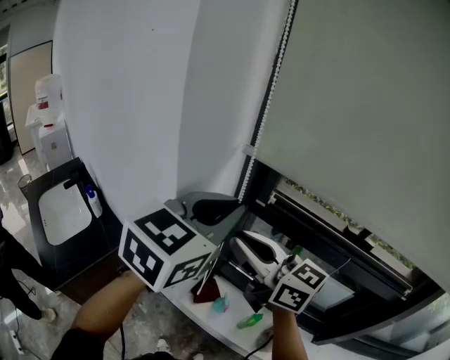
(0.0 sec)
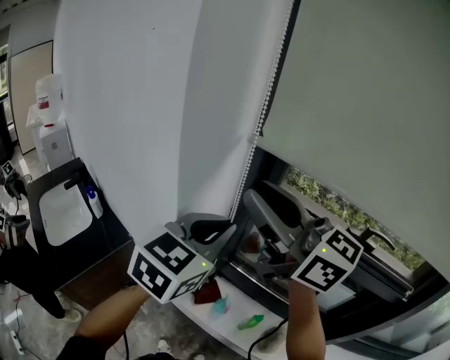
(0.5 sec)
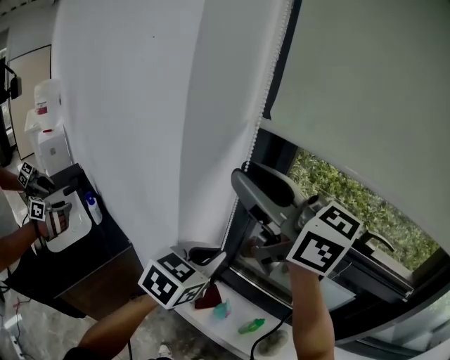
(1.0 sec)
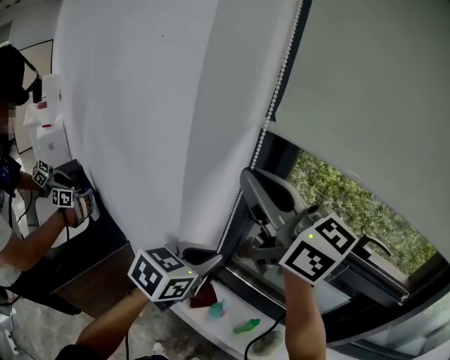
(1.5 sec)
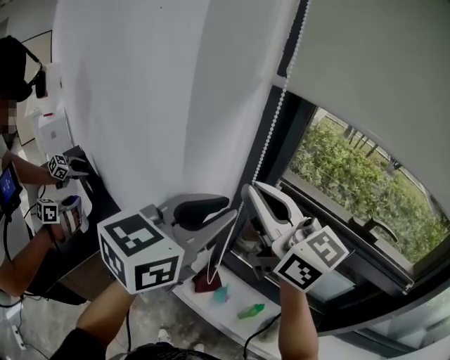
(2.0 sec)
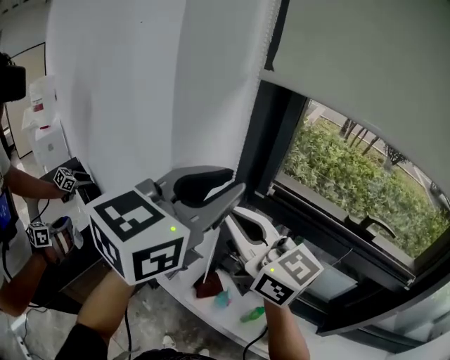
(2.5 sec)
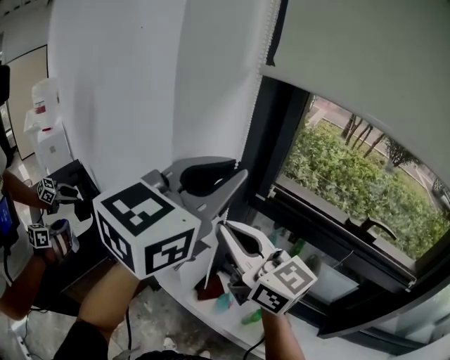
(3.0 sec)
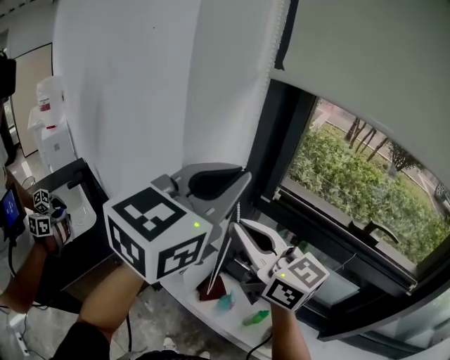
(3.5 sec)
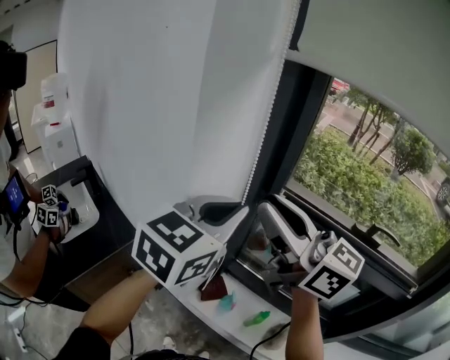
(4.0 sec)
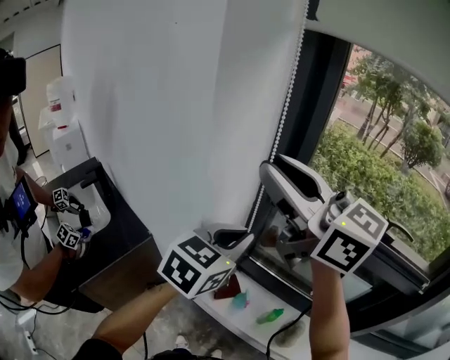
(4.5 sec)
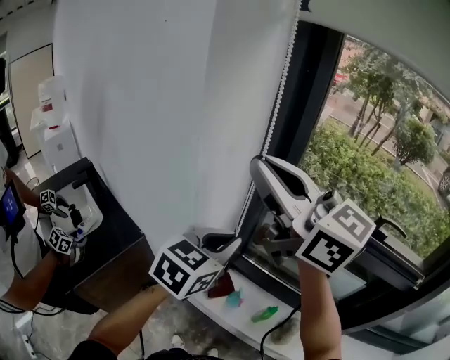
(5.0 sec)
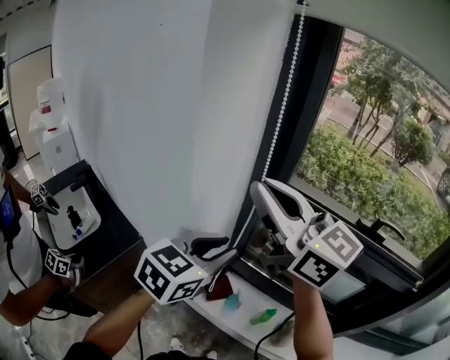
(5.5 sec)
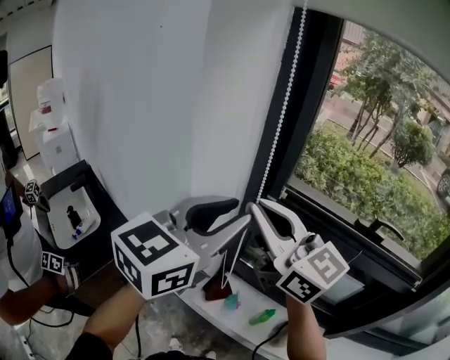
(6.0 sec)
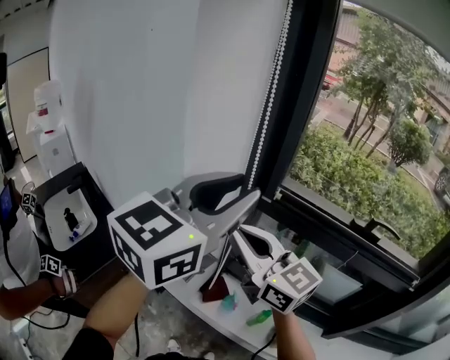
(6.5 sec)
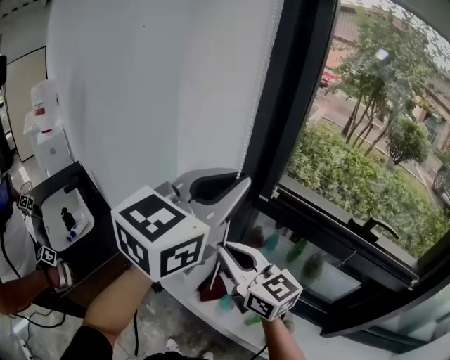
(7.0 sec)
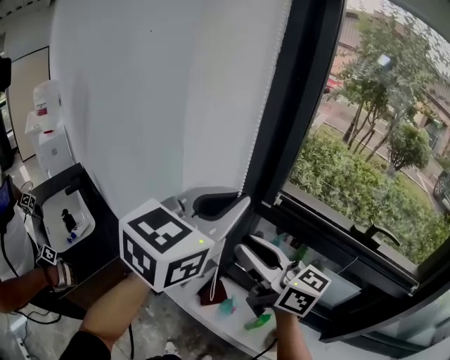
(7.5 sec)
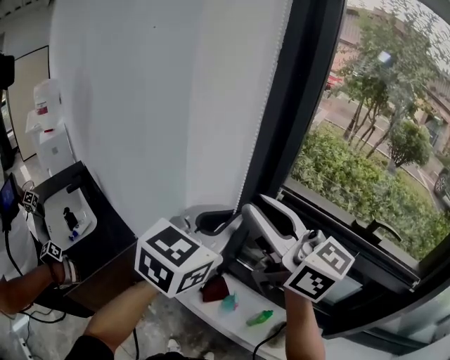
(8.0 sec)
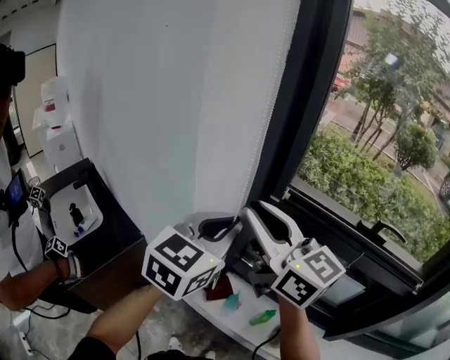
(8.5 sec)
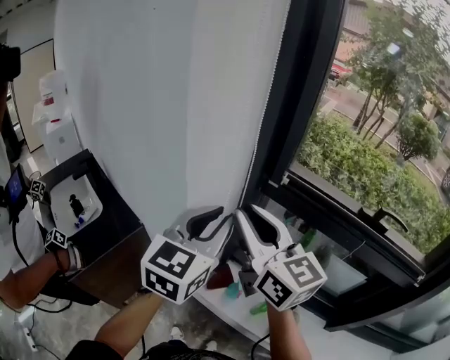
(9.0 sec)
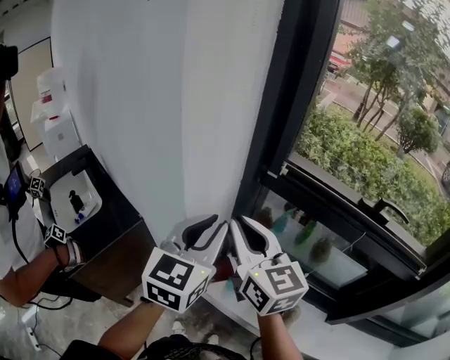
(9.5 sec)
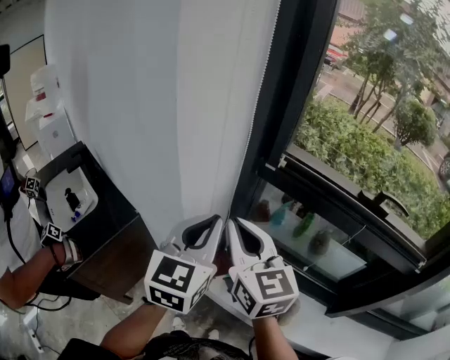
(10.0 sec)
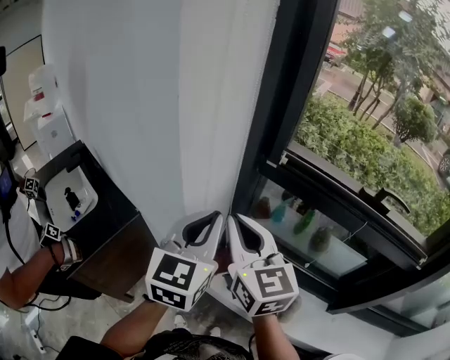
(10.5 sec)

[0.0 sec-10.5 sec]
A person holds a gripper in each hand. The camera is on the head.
0.0 sec to 2.0 sec: The right gripper travels upward by about 10 cm; the left gripper travels downward and back again, some 15 cm each way.
2.0 sec to 4.0 sec: The right gripper goes downward and returns, roughly 5 cm each way. Meanwhile the left gripper goes upward and returns, about 10 cm each way.
4.0 sec to 6.5 sec: The right gripper heads downward, covering some 10 cm. Meanwhile the left gripper shifts about 5 cm upward, and opens.
6.5 sec to 8.5 sec: The right gripper goes roughly 5 cm upward. Meanwhile the left gripper goes approximately 10 cm downward, and closes its fingers.
8.5 sec to 10.5 sec: The left gripper shifts roughly 5 cm downward. Meanwhile the right gripper moves downward, roughly 10 cm, and rotates about 20 degrees.

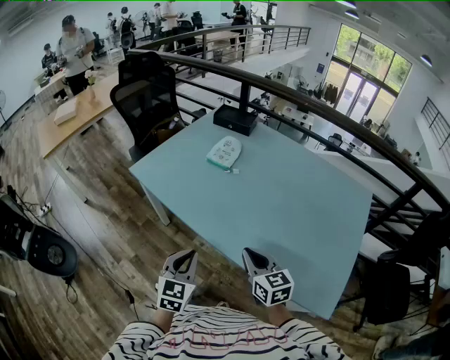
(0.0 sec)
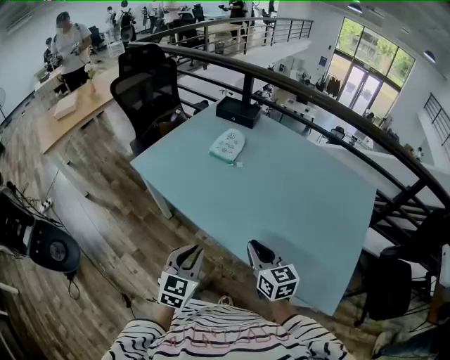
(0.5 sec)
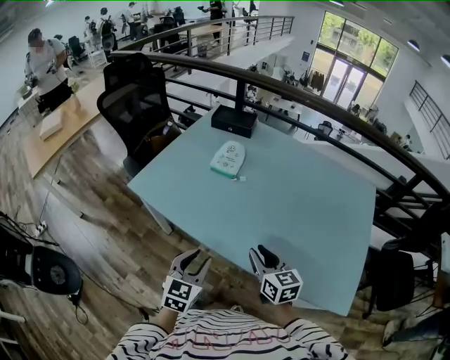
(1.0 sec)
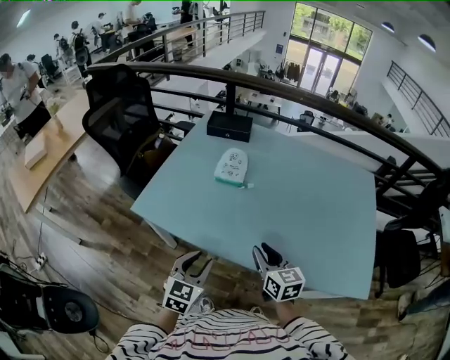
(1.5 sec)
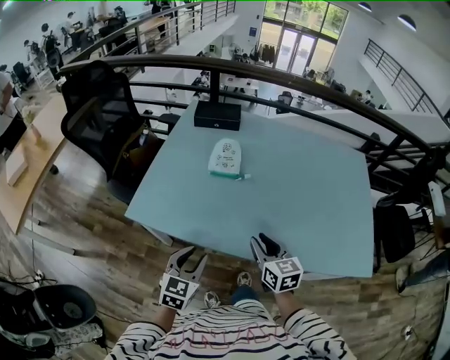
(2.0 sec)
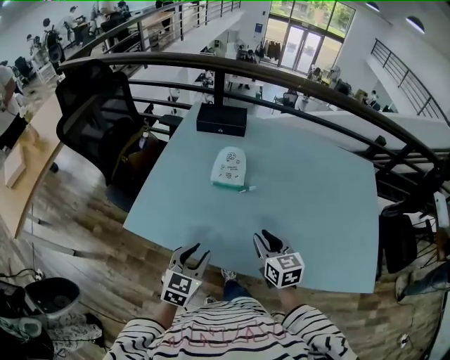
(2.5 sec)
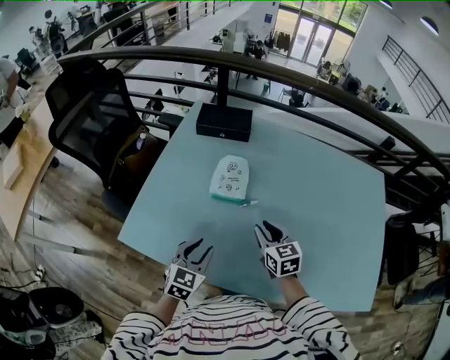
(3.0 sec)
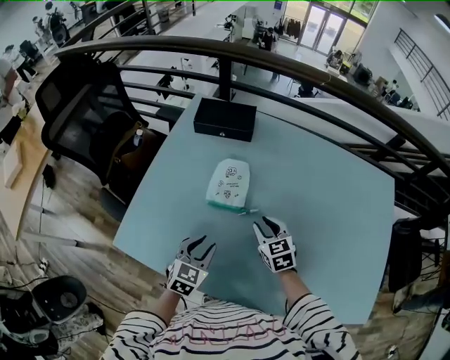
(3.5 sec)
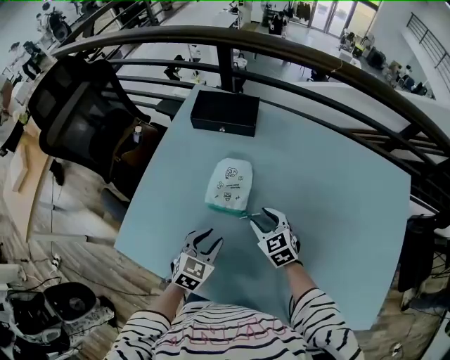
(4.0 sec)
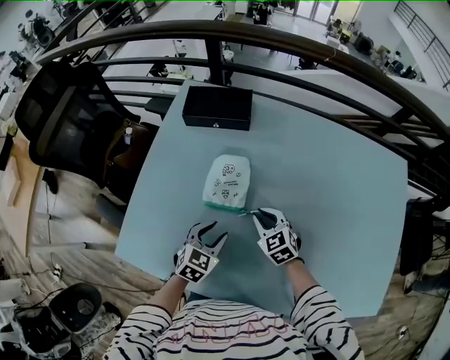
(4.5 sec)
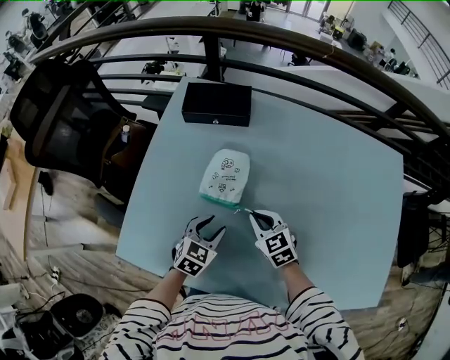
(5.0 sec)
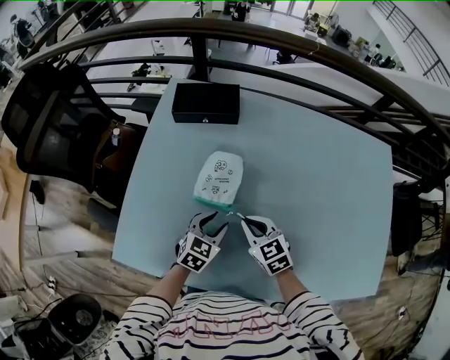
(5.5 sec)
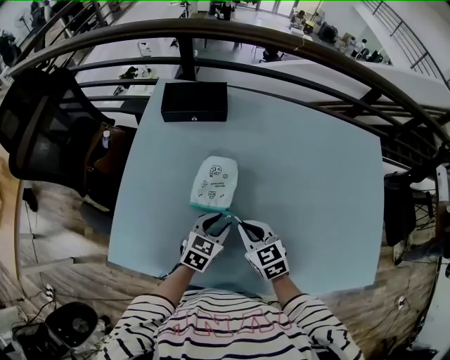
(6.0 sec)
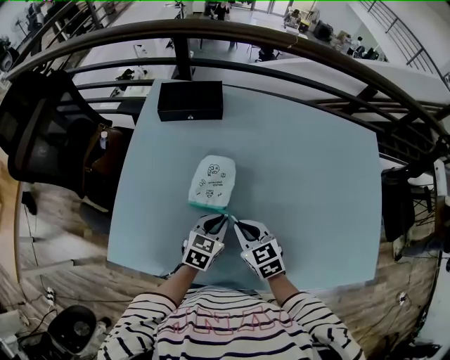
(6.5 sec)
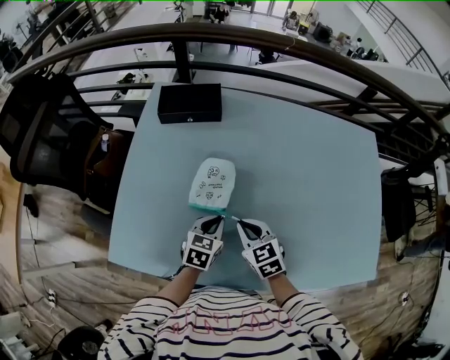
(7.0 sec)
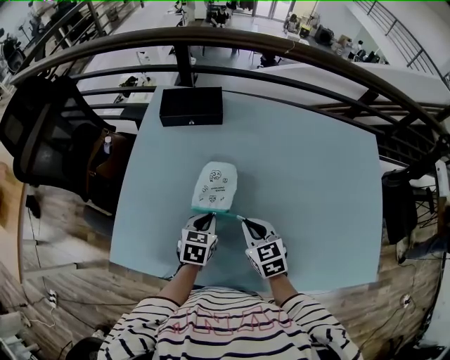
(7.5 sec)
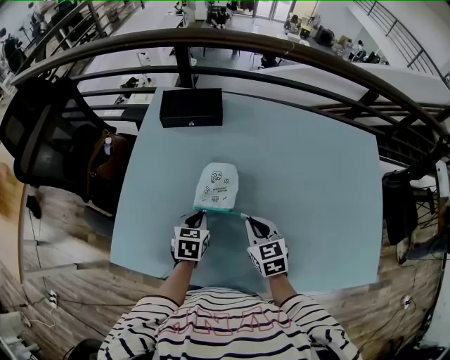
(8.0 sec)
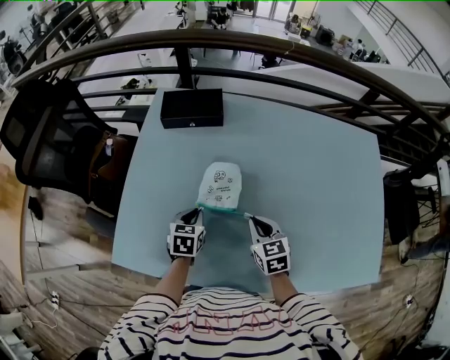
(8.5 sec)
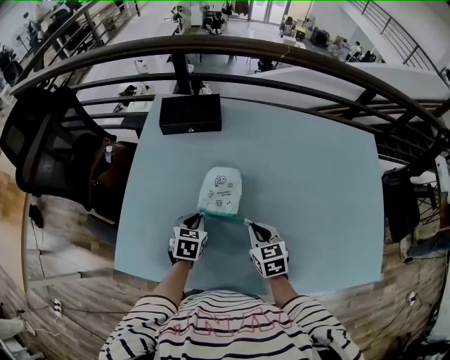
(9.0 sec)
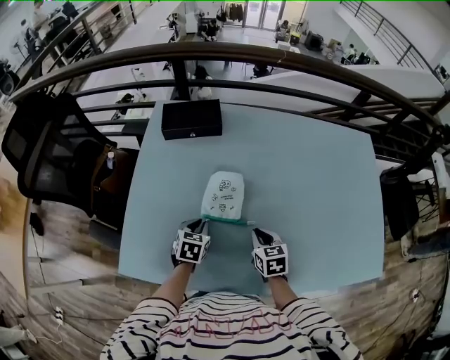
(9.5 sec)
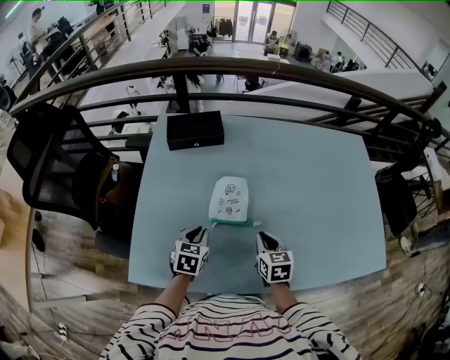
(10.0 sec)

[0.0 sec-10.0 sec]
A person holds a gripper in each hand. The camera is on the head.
0.0 sec to 2.0 sec: The left gripper ends up about 25 cm from where it was, and changes its angle by some 30 degrees. The right gripper ends up roughly 20 cm from where it was, and turns by some 30 degrees.
2.0 sec to 4.0 sec: The left gripper heads forward, covering approximately 30 cm. Meanwhile the right gripper goes about 35 cm forward and downward, and swivels roughly 30 degrees.
4.0 sec to 6.0 sec: The right gripper goes roughly 10 cm backward, and closes its fingers.
6.0 sec to 8.0 sec: The left gripper shifts roughly 10 cm to the left, swivels roughly 20 degrees, and closes up.
8.0 sec to 10.0 sec: The left gripper goes some 5 cm to the left. Meanwhile the right gripper swivels some 20 degrees.

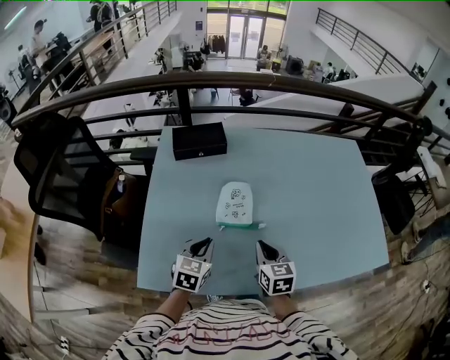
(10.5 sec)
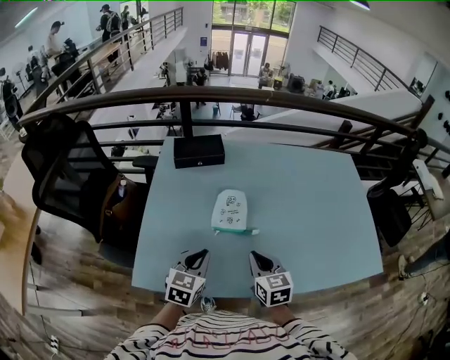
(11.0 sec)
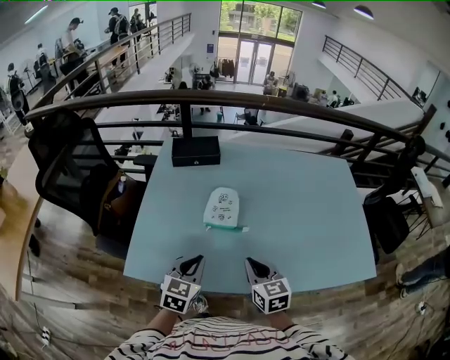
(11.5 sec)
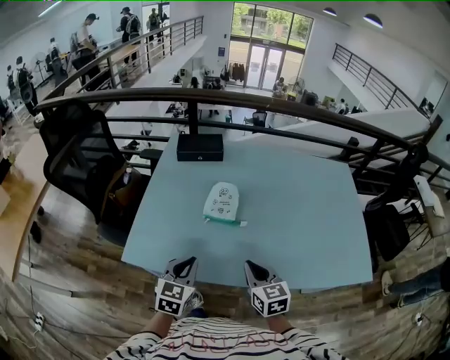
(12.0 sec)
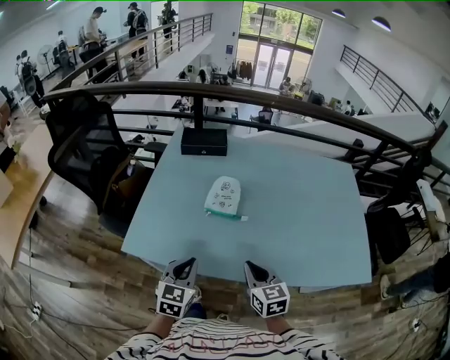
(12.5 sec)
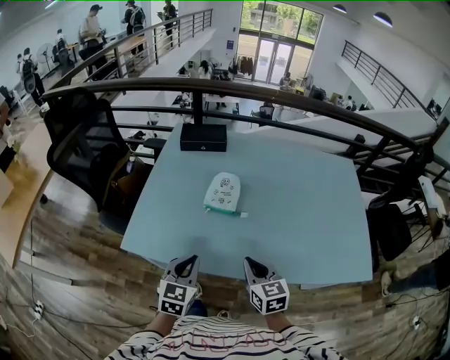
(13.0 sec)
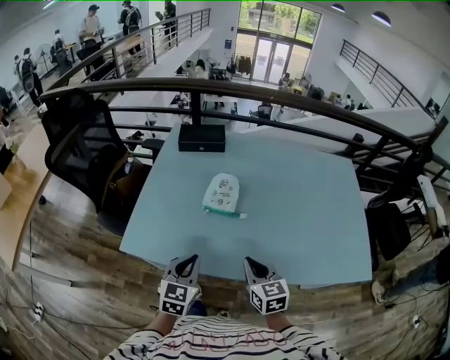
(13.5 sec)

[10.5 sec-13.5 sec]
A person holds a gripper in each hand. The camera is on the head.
10.5 sec to 12.0 sec: The two grippers go roughly 15 cm backward.
12.0 sec to 13.5 sec: There are only small adjustments of the grippers.

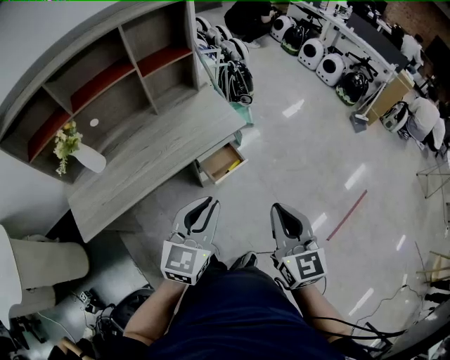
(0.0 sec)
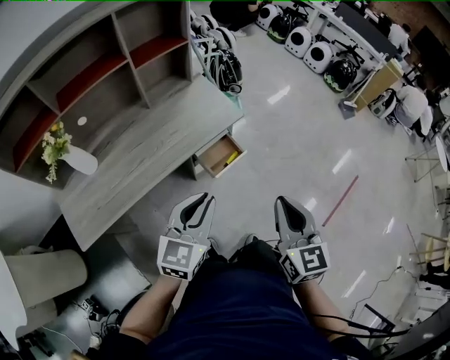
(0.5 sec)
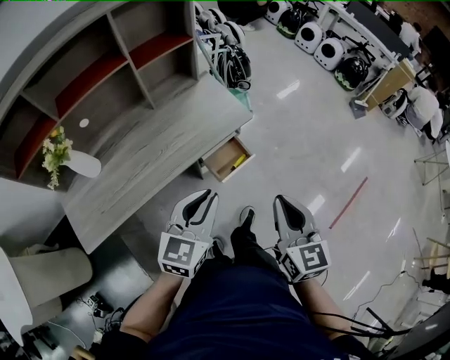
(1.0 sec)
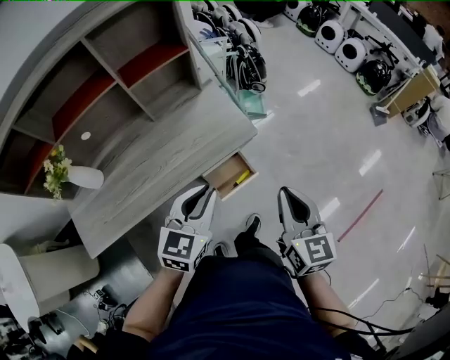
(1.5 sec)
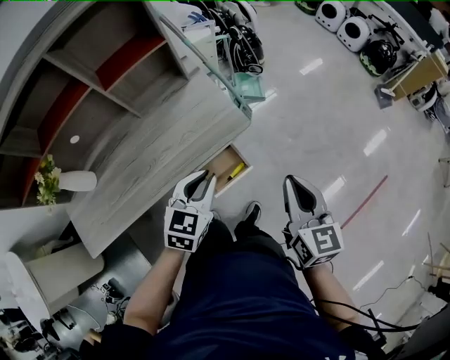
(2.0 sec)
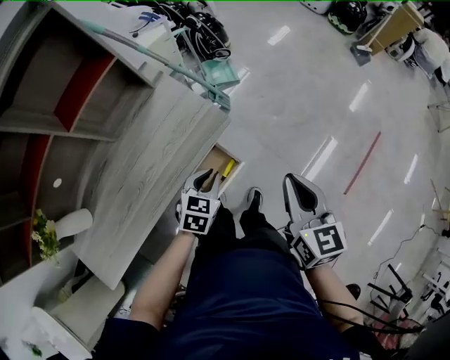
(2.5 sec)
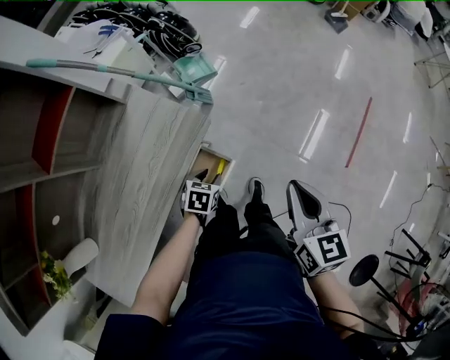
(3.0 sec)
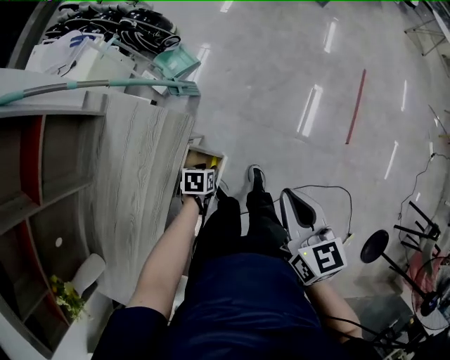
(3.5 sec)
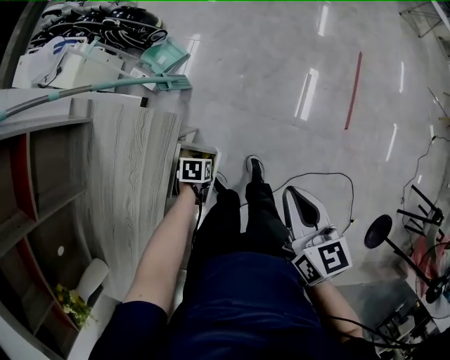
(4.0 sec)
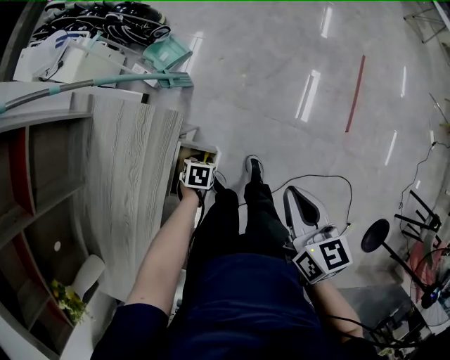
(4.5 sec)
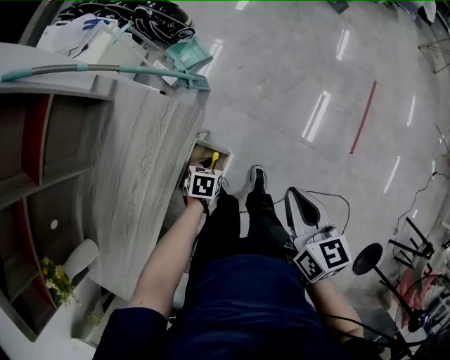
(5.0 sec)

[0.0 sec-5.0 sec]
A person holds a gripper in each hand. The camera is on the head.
0.0 sec to 2.5 sec: The grippers both shift forward and downward by roughly 30 cm. The left gripper angles its fingers downward, by about 30 degrees, while the right gripper changes its angle by roughly 20 degrees.
2.5 sec to 5.0 sec: The left gripper goes some 20 cm downward, and turns by roughly 20 degrees. Meanwhile the right gripper is displaced downward by approximately 5 cm, and swivels about 20 degrees.
